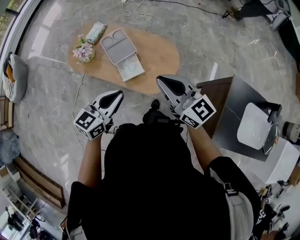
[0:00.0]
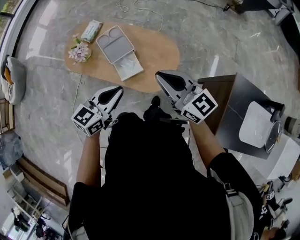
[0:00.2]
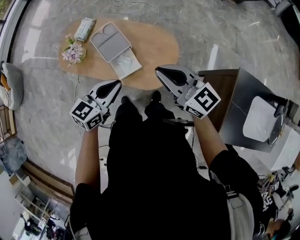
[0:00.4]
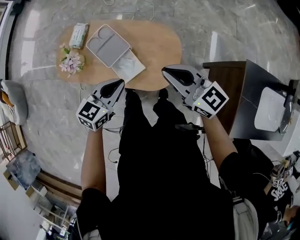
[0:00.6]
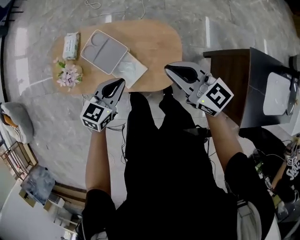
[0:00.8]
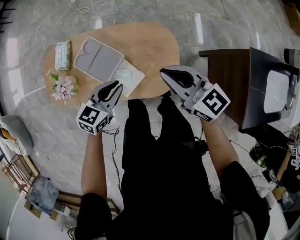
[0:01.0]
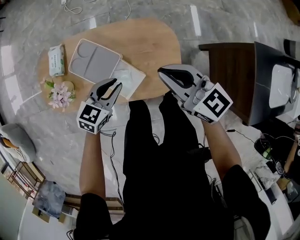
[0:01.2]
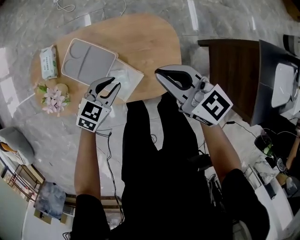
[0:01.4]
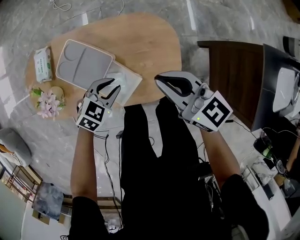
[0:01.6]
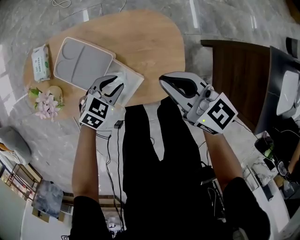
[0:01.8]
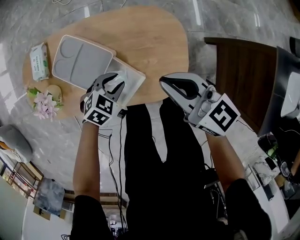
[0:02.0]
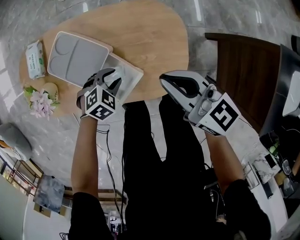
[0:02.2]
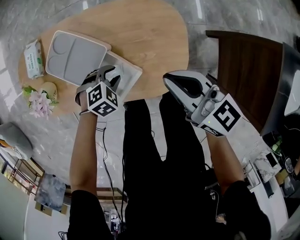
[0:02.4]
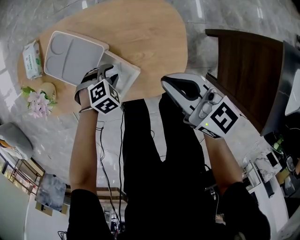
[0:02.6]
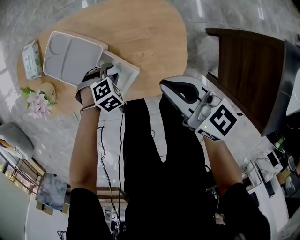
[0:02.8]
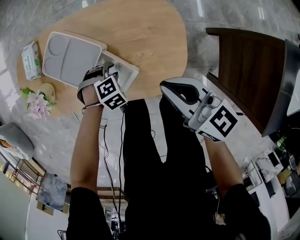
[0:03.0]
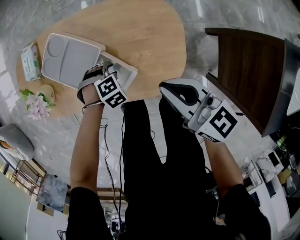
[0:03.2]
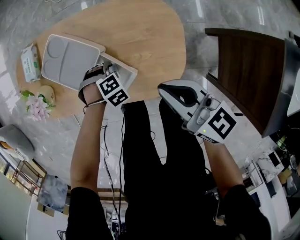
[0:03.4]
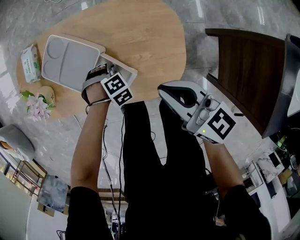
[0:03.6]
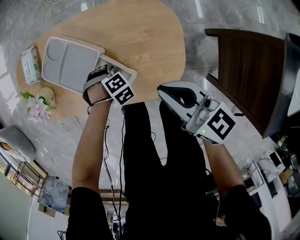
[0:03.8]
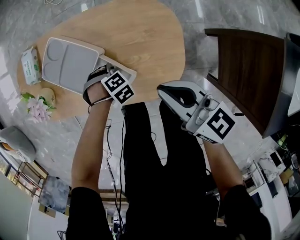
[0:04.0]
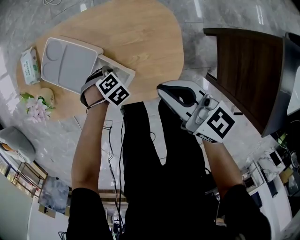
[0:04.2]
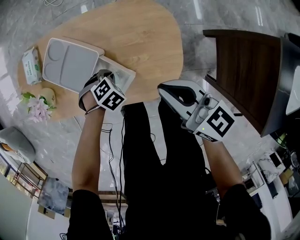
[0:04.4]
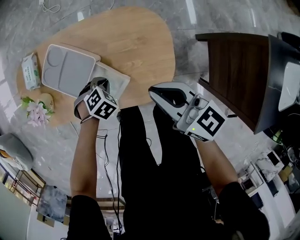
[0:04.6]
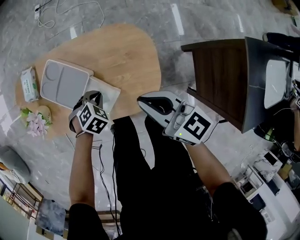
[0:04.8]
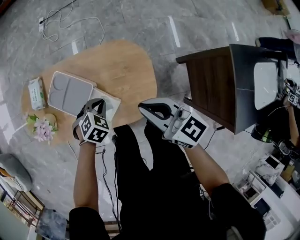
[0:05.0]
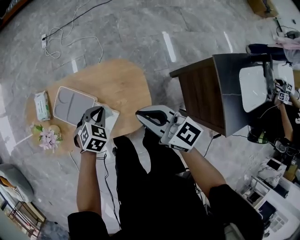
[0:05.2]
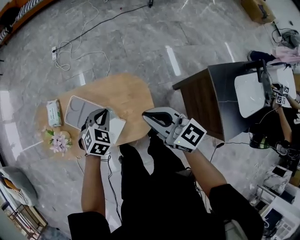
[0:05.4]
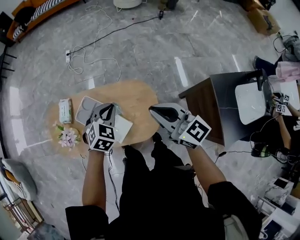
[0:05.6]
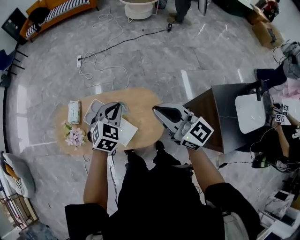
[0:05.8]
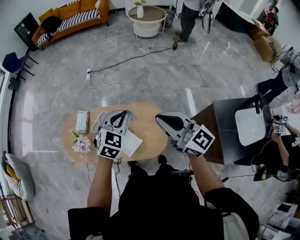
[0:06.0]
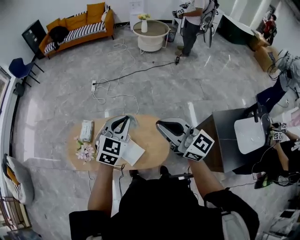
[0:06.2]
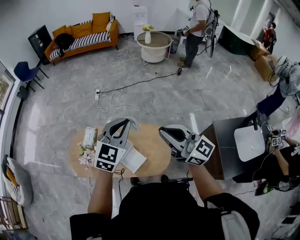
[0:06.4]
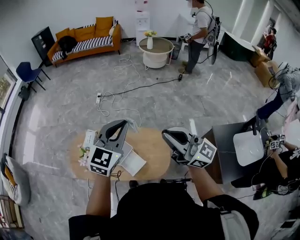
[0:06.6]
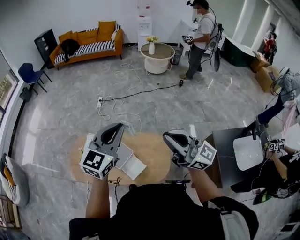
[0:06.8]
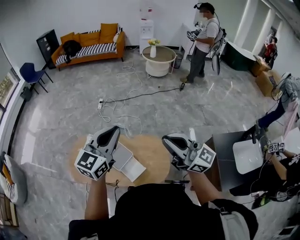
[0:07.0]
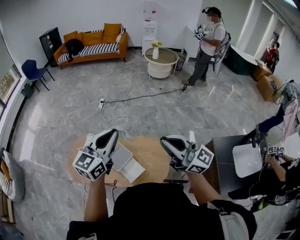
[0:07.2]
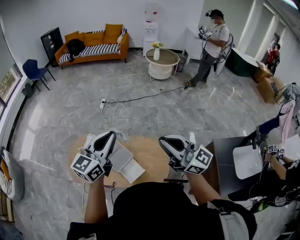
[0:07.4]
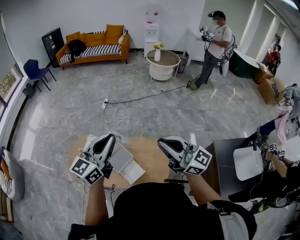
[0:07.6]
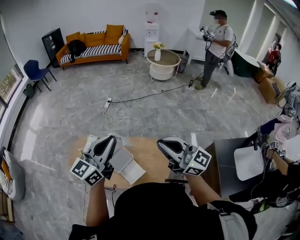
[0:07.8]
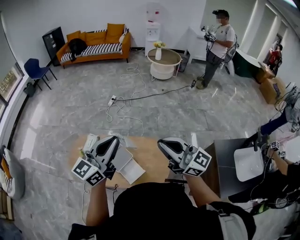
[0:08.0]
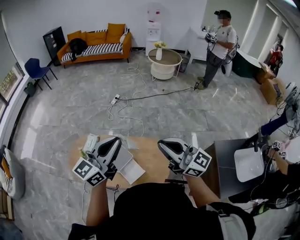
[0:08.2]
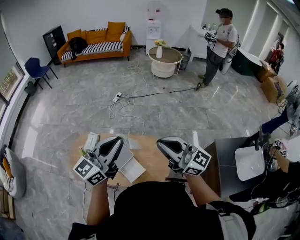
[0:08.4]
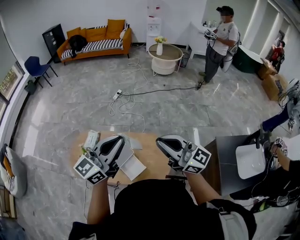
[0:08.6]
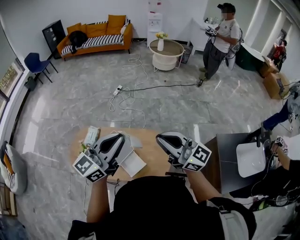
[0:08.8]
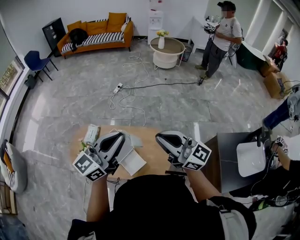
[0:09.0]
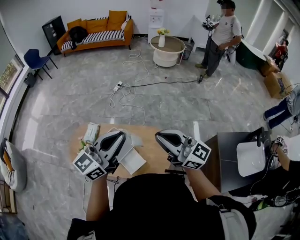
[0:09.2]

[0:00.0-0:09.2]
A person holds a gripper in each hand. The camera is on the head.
0:00.0 to 0:01.6: The grippers both shift downward by about 30 cm. The right gripper changes its angle by approximately 30 degrees. The left gripper tilts its fingers about 30 degrees downward, and opens up.
0:01.6 to 0:03.0: The right gripper heads downward, covering approximately 10 cm. The left gripper travels downward by roughly 15 cm, and points its fingers about 30 degrees further downward.
0:03.0 to 0:04.6: The left gripper closes up.
0:04.6 to 0:06.2: Both grippers travel together upward, roughly 50 cm. The left gripper points its fingers approximately 60 degrees further upward, while the right gripper swivels roughly 40 degrees.
0:06.2 to 0:07.6: The left gripper goes some 15 cm to the left and upward, and turns by some 40 degrees. Meanwhile the right gripper moves roughly 5 cm.
0:07.6 to 0:09.2: The left gripper ends up approximately 5 cm from where it was.

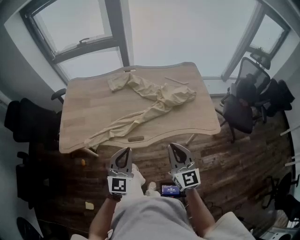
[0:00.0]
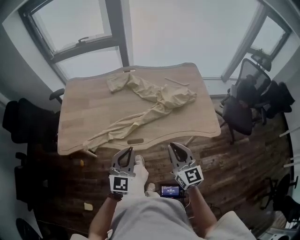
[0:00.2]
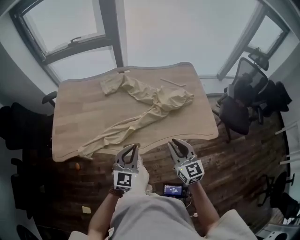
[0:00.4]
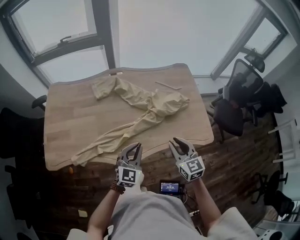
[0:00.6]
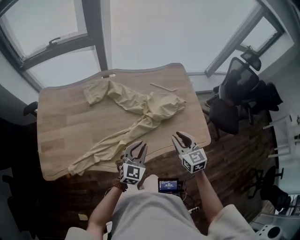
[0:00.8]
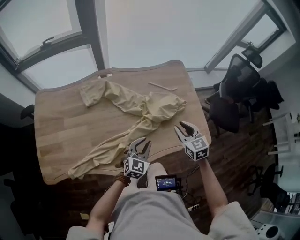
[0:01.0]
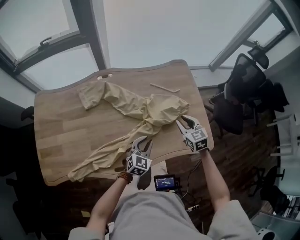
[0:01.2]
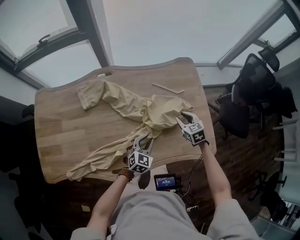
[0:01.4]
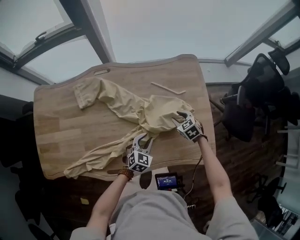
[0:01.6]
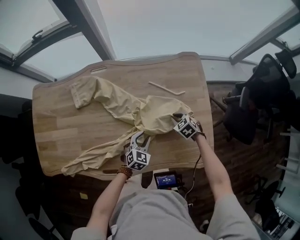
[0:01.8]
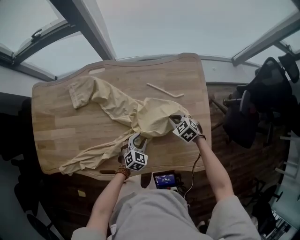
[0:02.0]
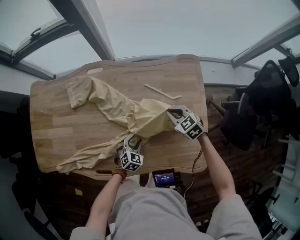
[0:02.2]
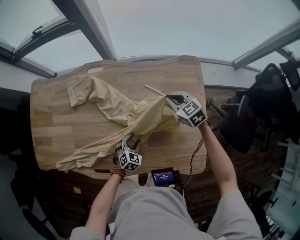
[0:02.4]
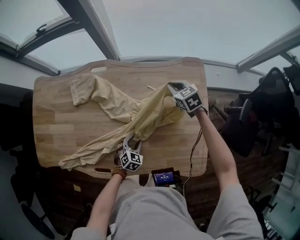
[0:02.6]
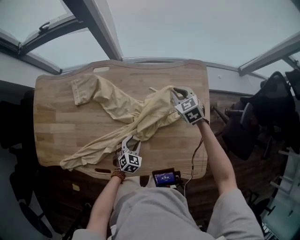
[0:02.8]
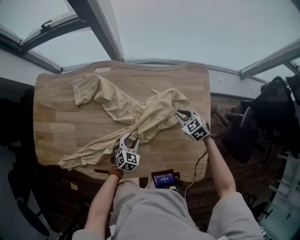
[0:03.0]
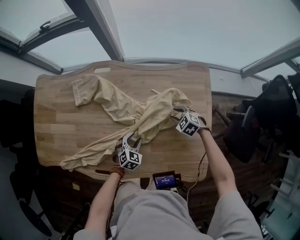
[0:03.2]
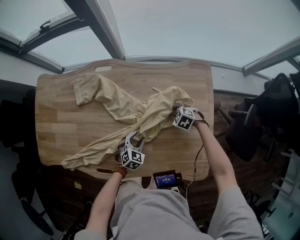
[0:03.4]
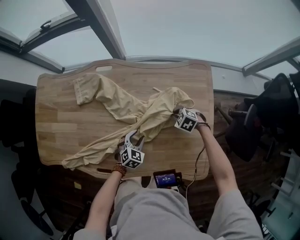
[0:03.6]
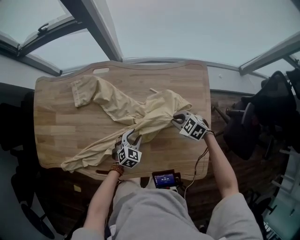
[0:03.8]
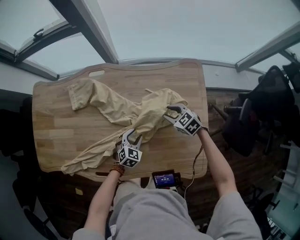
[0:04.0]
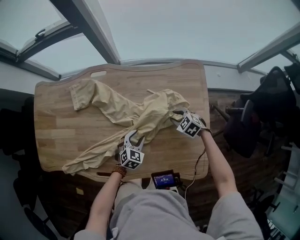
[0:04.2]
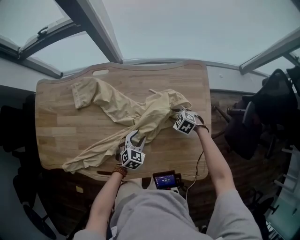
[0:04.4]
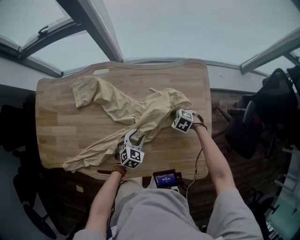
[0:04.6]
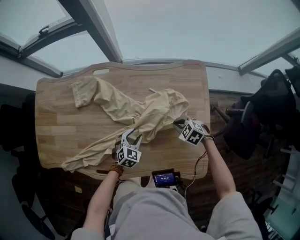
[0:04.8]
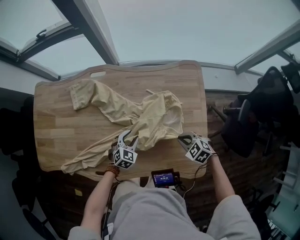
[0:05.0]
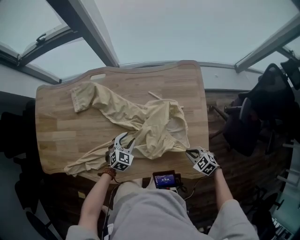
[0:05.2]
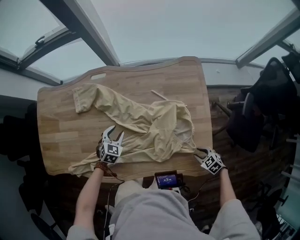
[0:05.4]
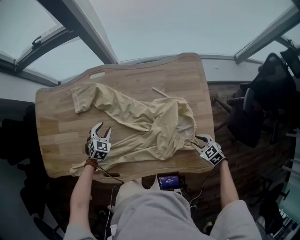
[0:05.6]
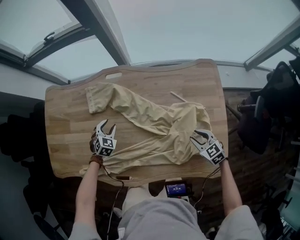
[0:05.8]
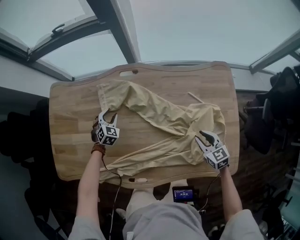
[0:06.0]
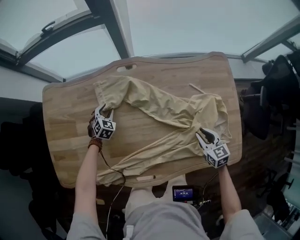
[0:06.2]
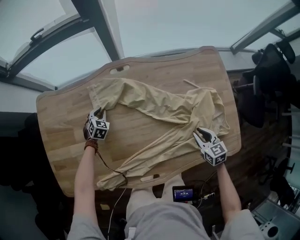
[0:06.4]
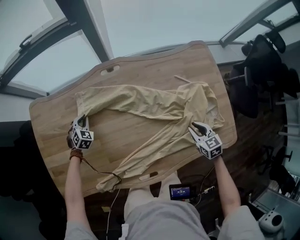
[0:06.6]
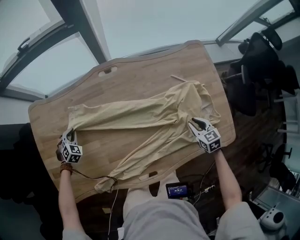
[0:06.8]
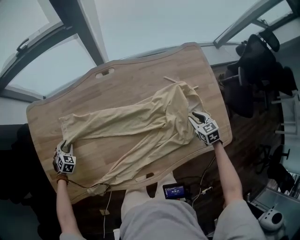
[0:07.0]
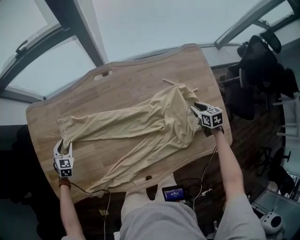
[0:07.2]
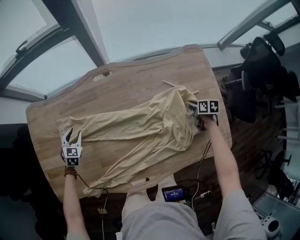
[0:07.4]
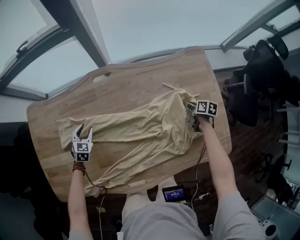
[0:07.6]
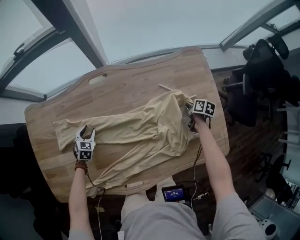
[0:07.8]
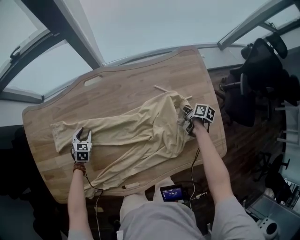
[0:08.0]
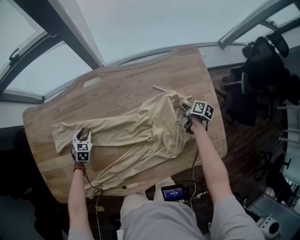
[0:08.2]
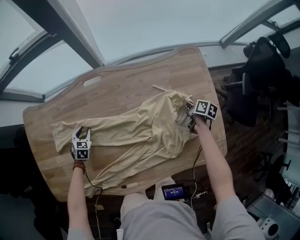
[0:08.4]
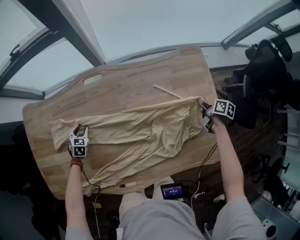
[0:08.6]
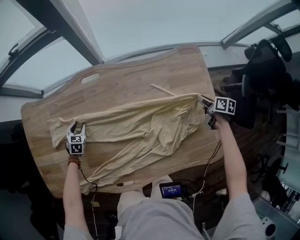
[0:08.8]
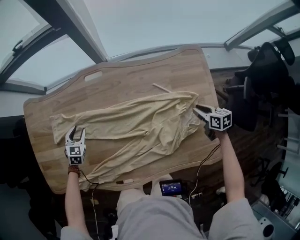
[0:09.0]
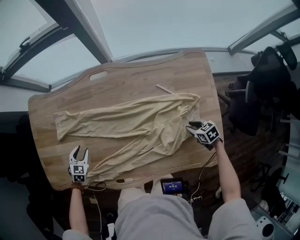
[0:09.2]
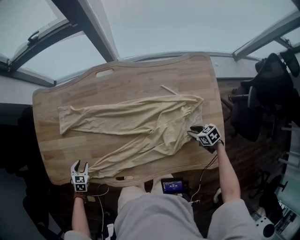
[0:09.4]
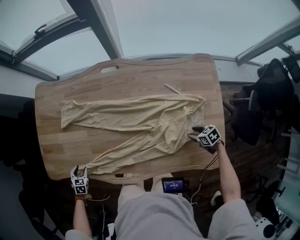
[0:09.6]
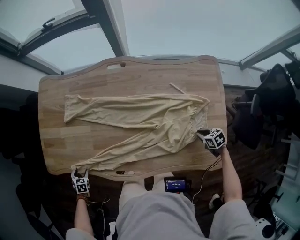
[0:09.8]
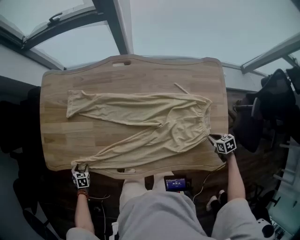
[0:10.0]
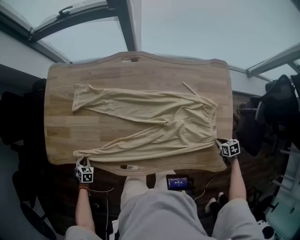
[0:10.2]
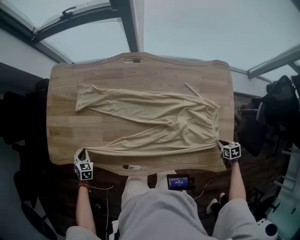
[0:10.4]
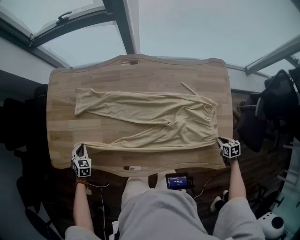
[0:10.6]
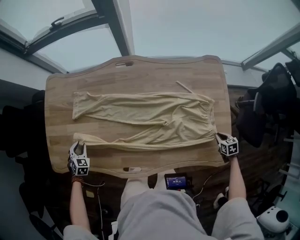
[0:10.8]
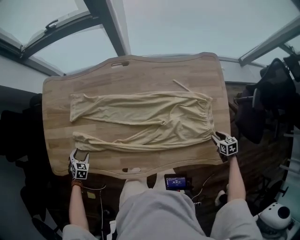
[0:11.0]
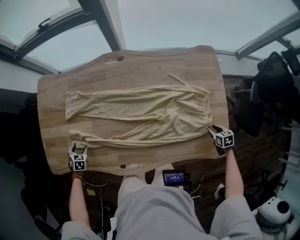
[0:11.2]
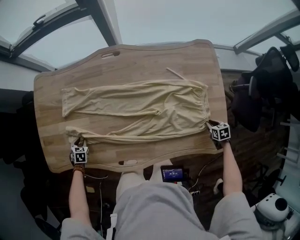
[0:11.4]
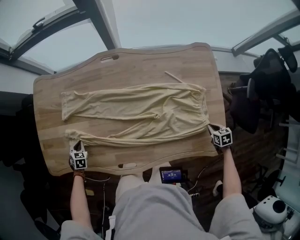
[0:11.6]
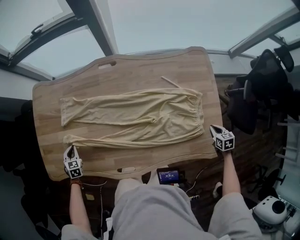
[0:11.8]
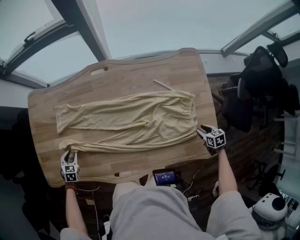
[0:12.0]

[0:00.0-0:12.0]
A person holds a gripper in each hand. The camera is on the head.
0:00.0 to 0:01.6: Both grippers are carried forward and to the right, some 40 cm. The grippers both shift downward by roughly 30 cm. The left gripper tips its fingers downward by approximately 40 degrees, and opens its fingers, while the right gripper tilts its fingers approximately 50 degrees downward, and opens its fingers.
0:01.6 to 0:03.0: The left gripper goes some 5 cm forward and downward, while the right gripper is displaced forward by some 10 cm, and closes.
0:03.0 to 0:04.4: The right gripper goes up and down, some 10 cm each way, reversing 2 times, and opens its fingers.
0:04.4 to 0:06.0: The left gripper shifts roughly 40 cm to the left and forward. The right gripper heads to the left and upward, covering approximately 15 cm, moves approximately 30 cm backward and comes back, rotates some 40 degrees, and closes, then reopens.
0:06.0 to 0:07.6: The right gripper goes about 20 cm downward, to the right and forward, and twists some 60 degrees clockwise, seen from behind; the left gripper reaches about 25 cm to the left, then returns, and closes and opens again.
0:07.6 to 0:09.0: The right gripper travels upward and to the right by some 10 cm, swivels approximately 30 degrees, and closes, then reopens.
0:09.0 to 0:10.4: The left gripper shifts by roughly 30 cm, swivels approximately 30 degrees, and closes its fingers; the right gripper changes place by roughly 20 cm, rotates some 30 degrees, and opens and closes again.
0:10.4 to 0:12.0: The right gripper opens up, while the left gripper travels downward and back again, some 5 cm each way, and opens up.

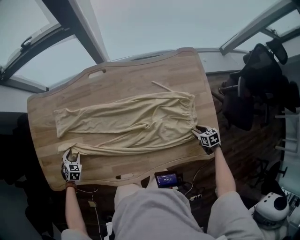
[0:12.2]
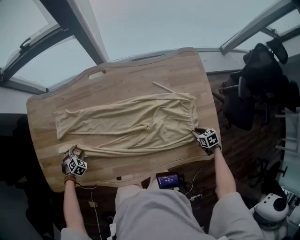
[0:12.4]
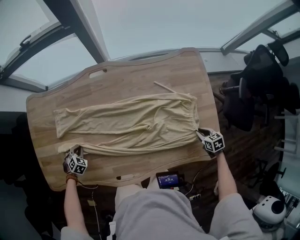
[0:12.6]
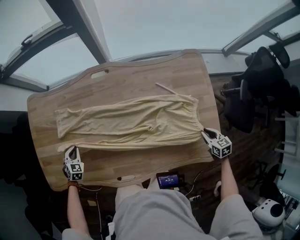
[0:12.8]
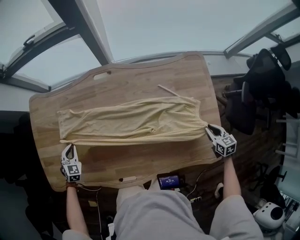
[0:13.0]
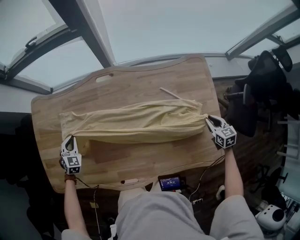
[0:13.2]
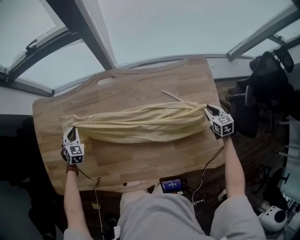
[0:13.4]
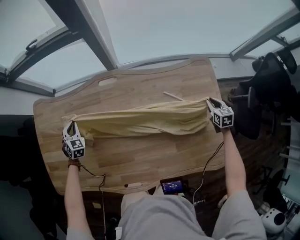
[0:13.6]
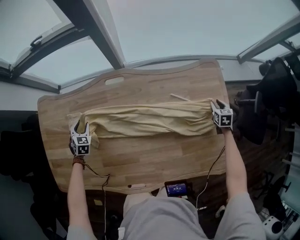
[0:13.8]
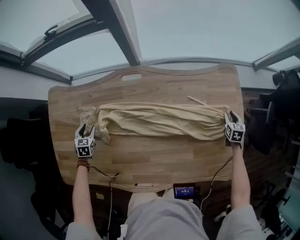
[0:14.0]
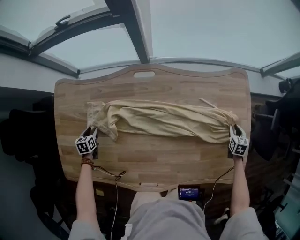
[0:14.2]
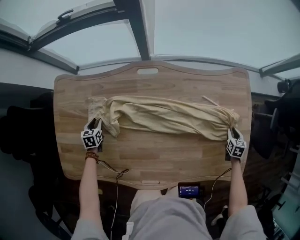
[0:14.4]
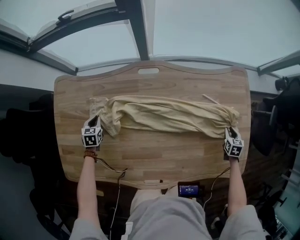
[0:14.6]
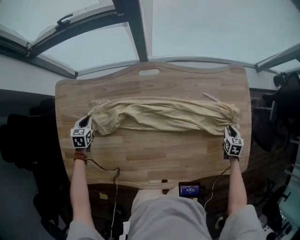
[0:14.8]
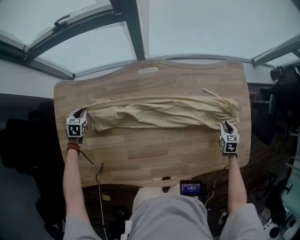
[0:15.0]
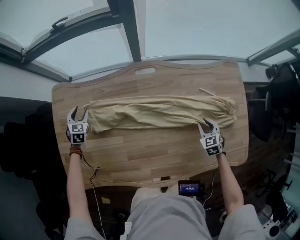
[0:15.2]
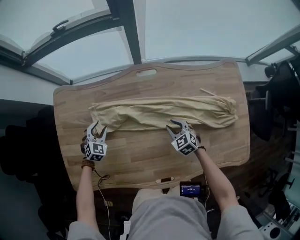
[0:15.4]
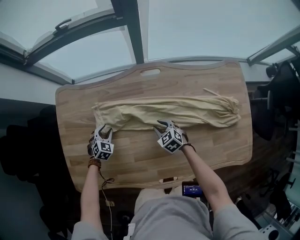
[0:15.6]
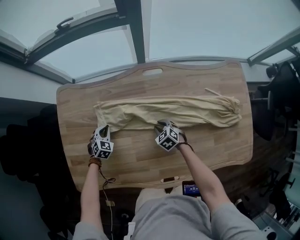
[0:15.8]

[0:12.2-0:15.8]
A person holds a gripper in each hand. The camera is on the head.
0:12.2 to 0:14.0: The right gripper moves about 10 cm upward and comes back, and turns by some 30 degrees; the left gripper goes up and down, some 10 cm each way, reversing 2 times, turns by roughly 30 degrees, and closes and opens again.
0:14.0 to 0:15.8: The right gripper is displaced to the left by roughly 60 cm, and swivels some 50 degrees. The left gripper goes forward and backward, some 10 cm each way, reversing 2 times, changes its angle by about 30 degrees, and closes its fingers.
